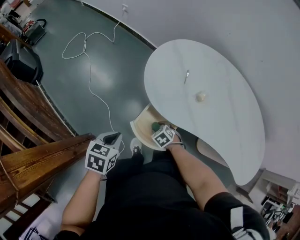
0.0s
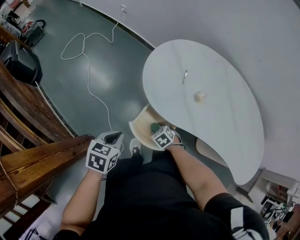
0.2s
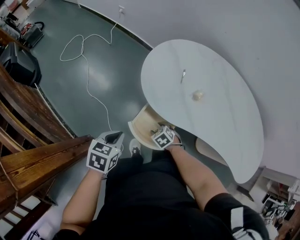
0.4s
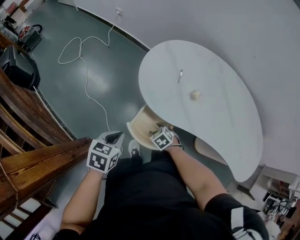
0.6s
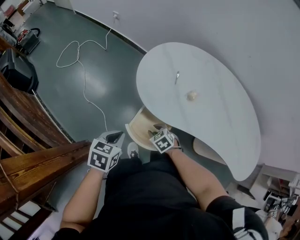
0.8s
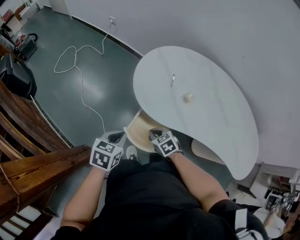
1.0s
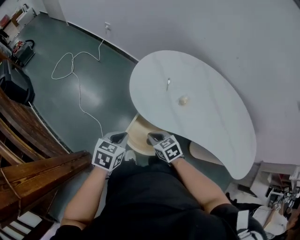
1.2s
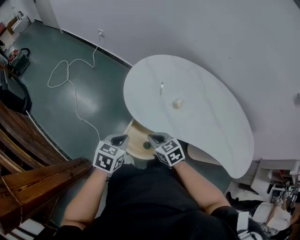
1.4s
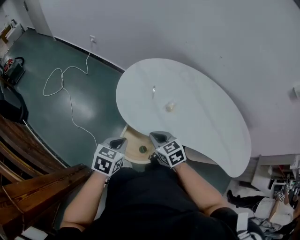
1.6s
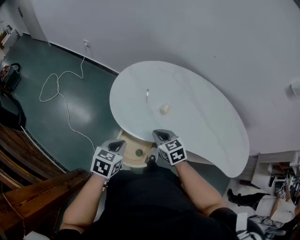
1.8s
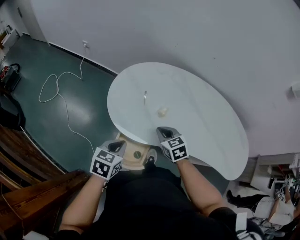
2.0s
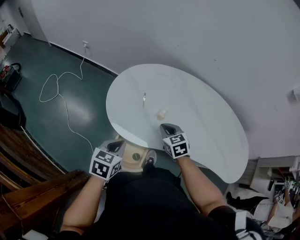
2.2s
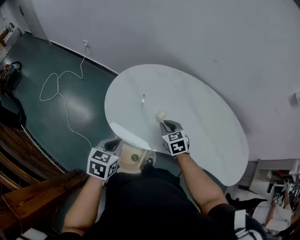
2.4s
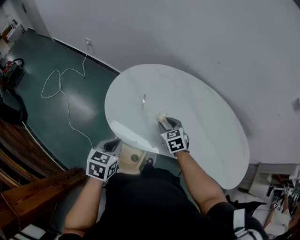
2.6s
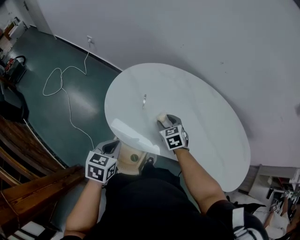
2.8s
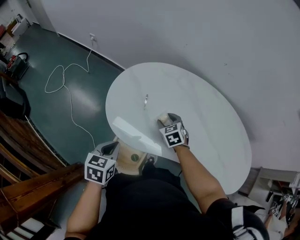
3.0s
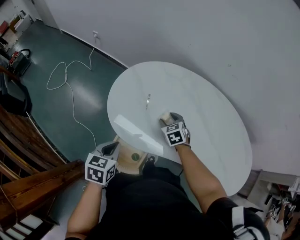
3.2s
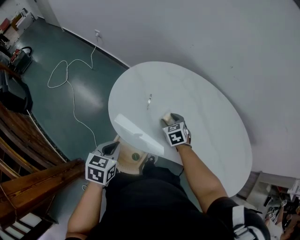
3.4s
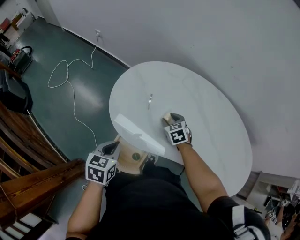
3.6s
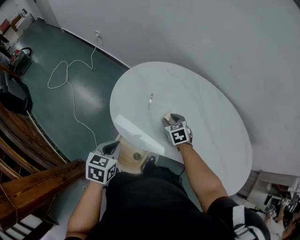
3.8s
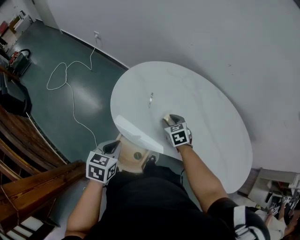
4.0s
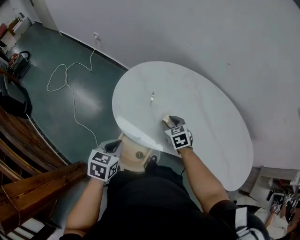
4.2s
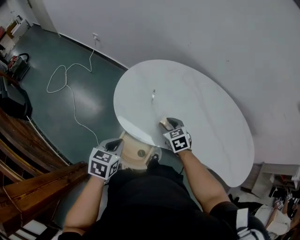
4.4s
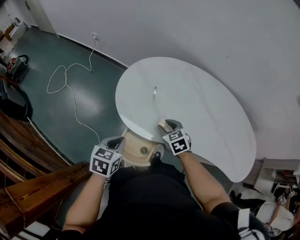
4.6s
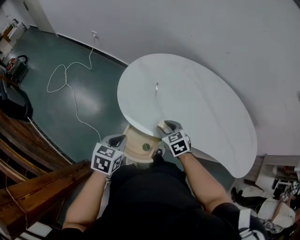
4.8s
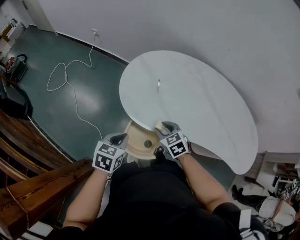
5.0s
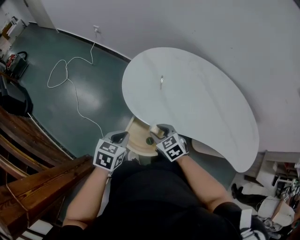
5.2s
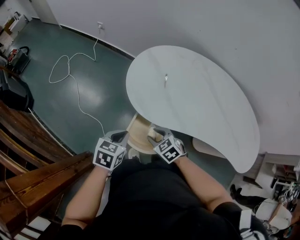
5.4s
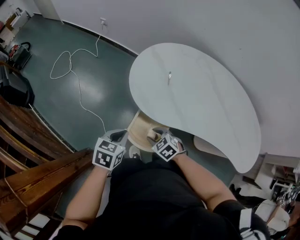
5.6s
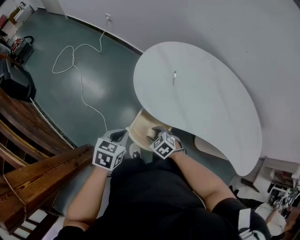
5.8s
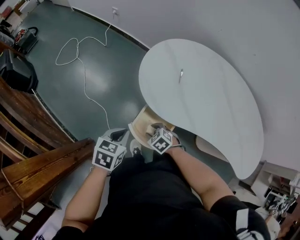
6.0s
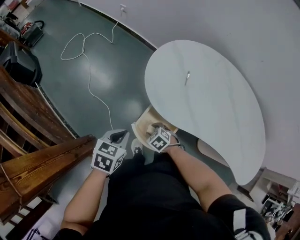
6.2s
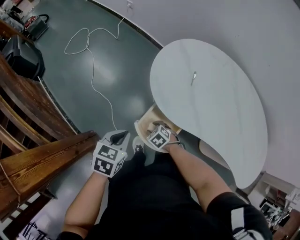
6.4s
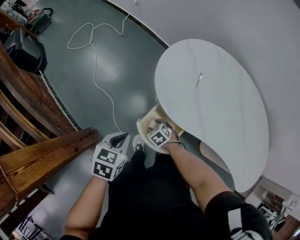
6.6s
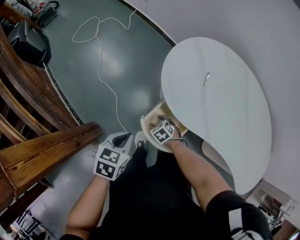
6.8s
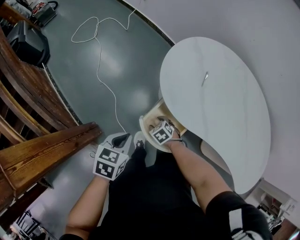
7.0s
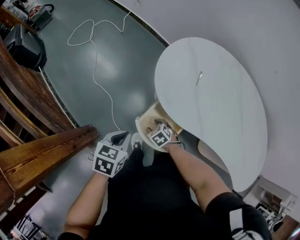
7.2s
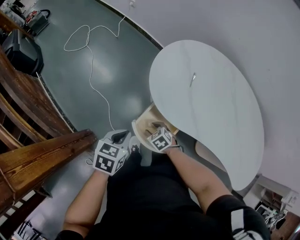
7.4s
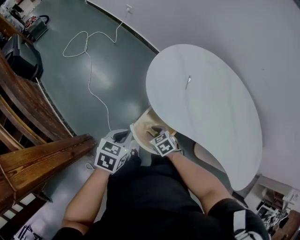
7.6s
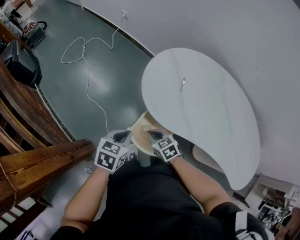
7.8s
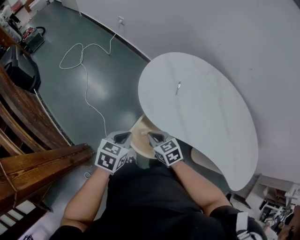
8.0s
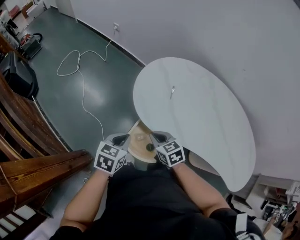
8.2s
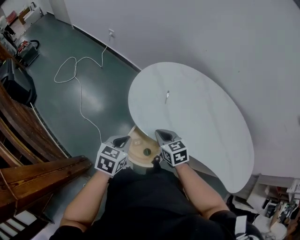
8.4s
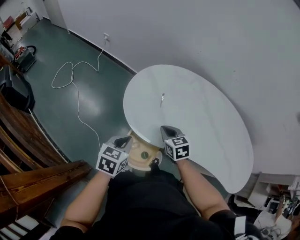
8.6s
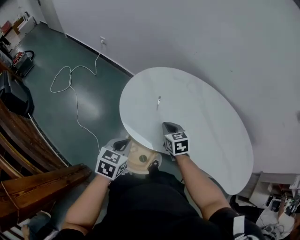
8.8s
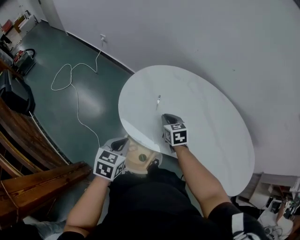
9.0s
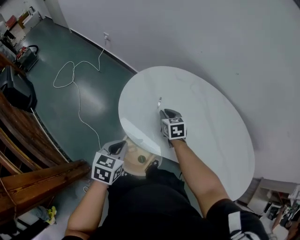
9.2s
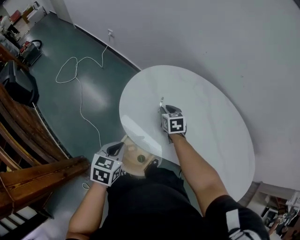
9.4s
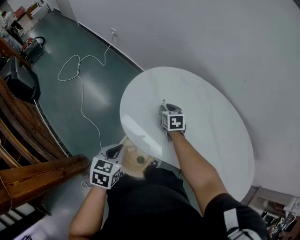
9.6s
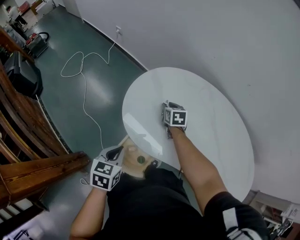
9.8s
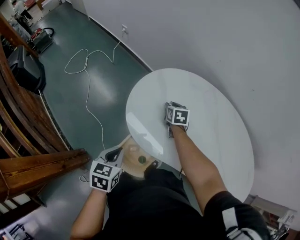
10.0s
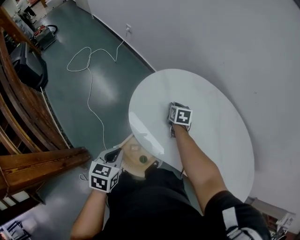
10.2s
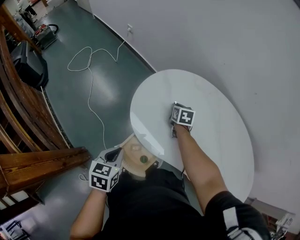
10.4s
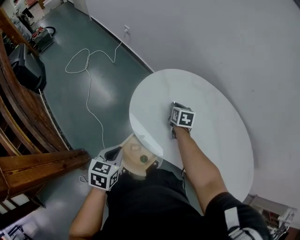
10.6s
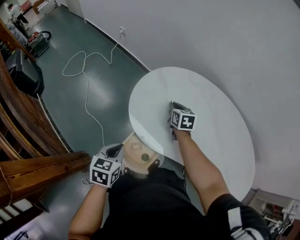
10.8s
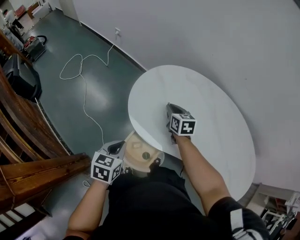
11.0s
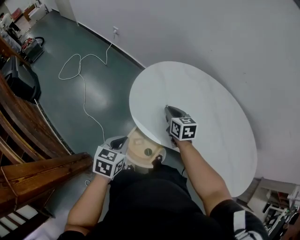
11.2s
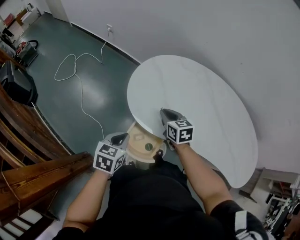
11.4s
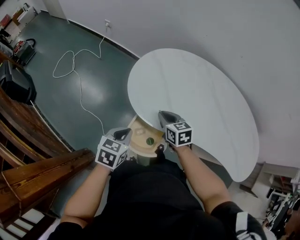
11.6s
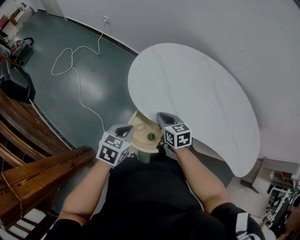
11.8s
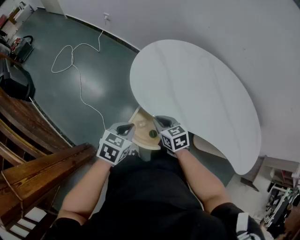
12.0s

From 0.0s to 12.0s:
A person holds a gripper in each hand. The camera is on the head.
From 0.0s to 1.6s: The left gripper travels to the right by approximately 10 cm; the right gripper is displaced upward by about 20 cm, rotates roughly 30 degrees, and closes its fingers.
From 1.6s to 3.0s: The left gripper shifts roughly 5 cm forward. The right gripper is displaced forward and to the right by some 20 cm, and opens its fingers.
From 3.0s to 4.4s: The right gripper moves backward, about 5 cm.
From 4.4s to 6.0s: The right gripper goes some 25 cm to the left, backward and downward, and turns by roughly 30 degrees, while the left gripper shifts about 10 cm to the left and backward.
From 6.0s to 7.6s: The right gripper travels downward and back again, about 10 cm each way.
From 7.6s to 9.0s: The left gripper is displaced to the right, forward and upward by some 15 cm; the right gripper shifts about 30 cm forward, to the right and upward, changes its angle by some 30 degrees, and closes up.
From 9.0s to 10.4s: The right gripper travels forward and downward by some 15 cm. The left gripper changes place by roughly 5 cm.
From 10.4s to 12.0s: The right gripper moves backward, approximately 30 cm; the left gripper turns by roughly 30 degrees.

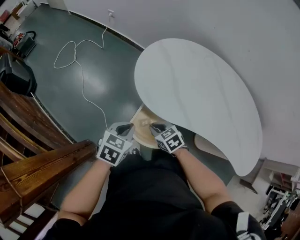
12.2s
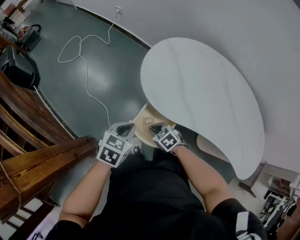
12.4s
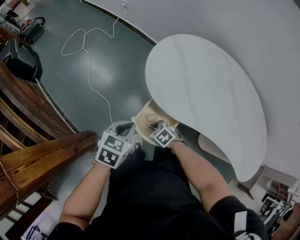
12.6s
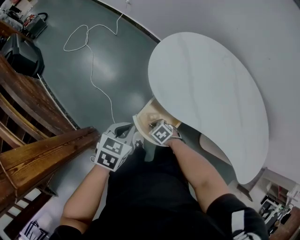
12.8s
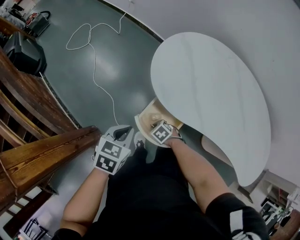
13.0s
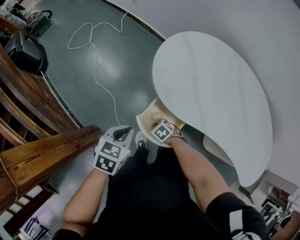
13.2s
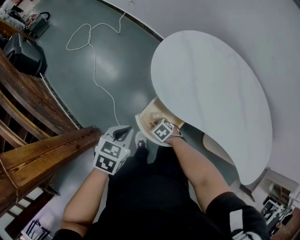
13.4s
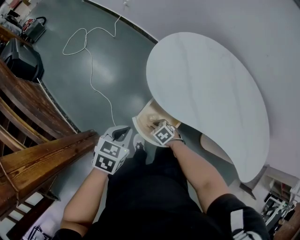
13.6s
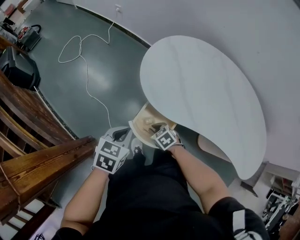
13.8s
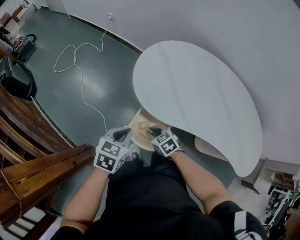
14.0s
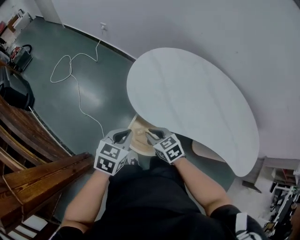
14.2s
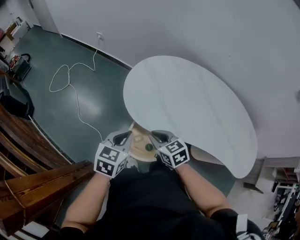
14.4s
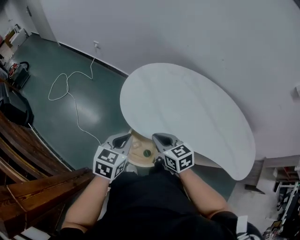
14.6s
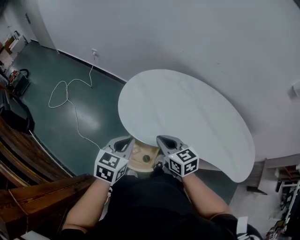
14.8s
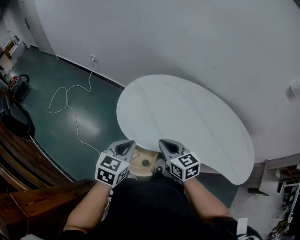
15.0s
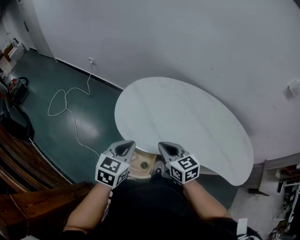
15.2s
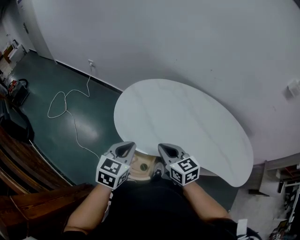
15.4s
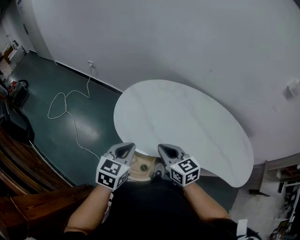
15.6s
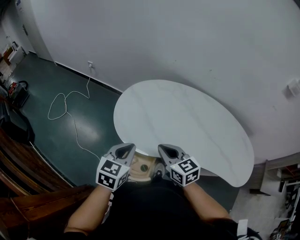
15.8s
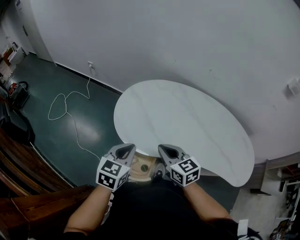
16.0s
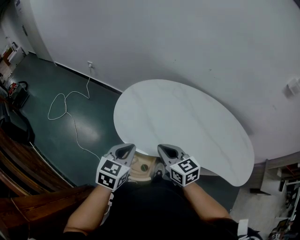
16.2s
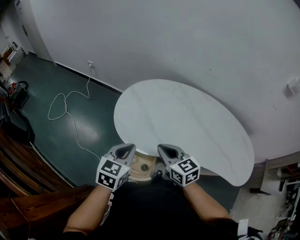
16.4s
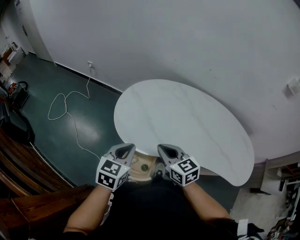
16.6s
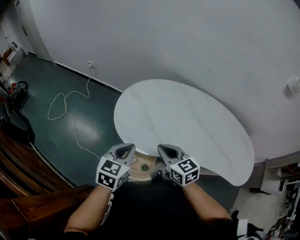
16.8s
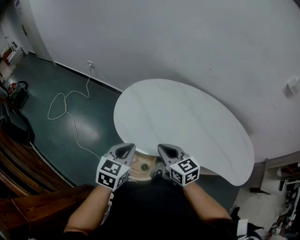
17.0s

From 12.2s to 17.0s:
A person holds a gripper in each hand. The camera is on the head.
From 12.2s to 13.8s: The right gripper shifts approximately 10 cm downward.
From 13.8s to 15.4s: The left gripper goes about 20 cm upward, to the right and forward, and turns by approximately 20 degrees. The right gripper heads upward and to the right, covering some 35 cm, and angles its fingers upward, by approximately 30 degrees.
From 15.4s to 17.0s: Both grippers stay put.

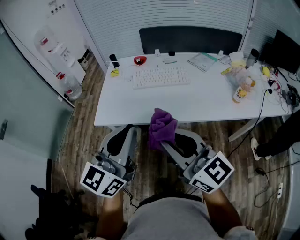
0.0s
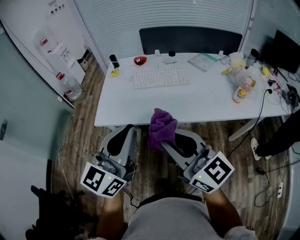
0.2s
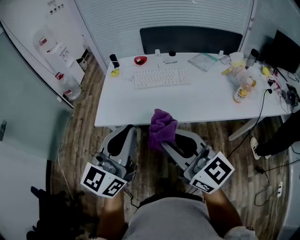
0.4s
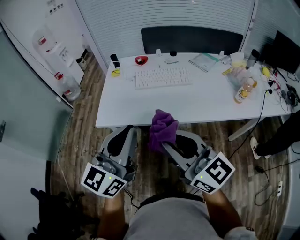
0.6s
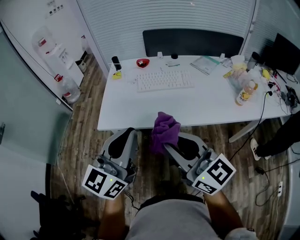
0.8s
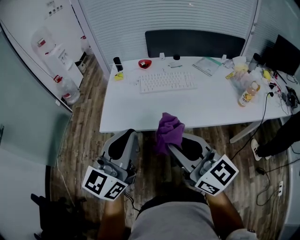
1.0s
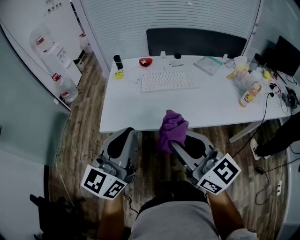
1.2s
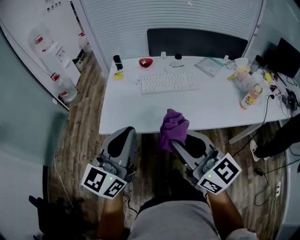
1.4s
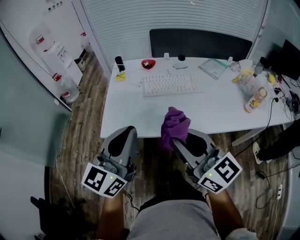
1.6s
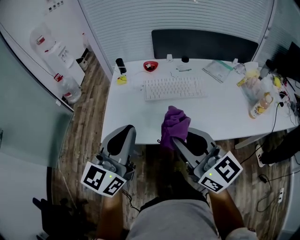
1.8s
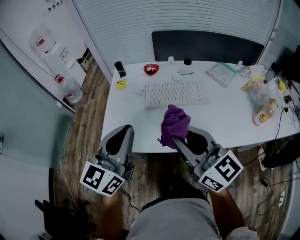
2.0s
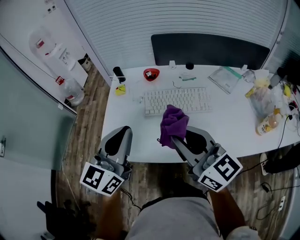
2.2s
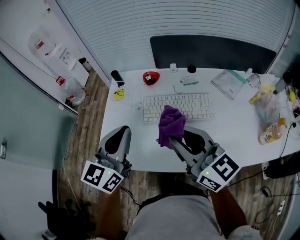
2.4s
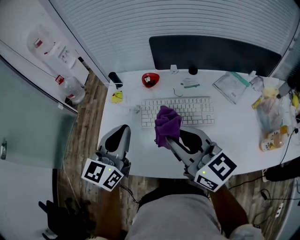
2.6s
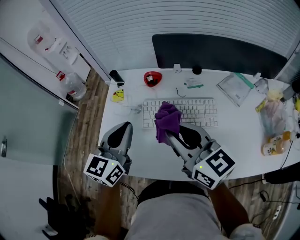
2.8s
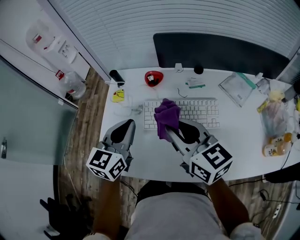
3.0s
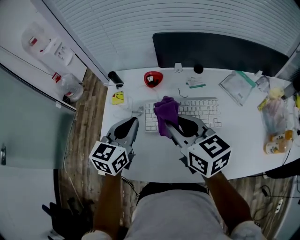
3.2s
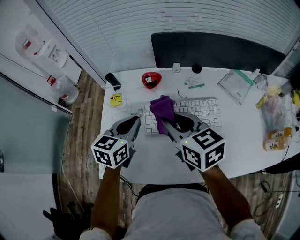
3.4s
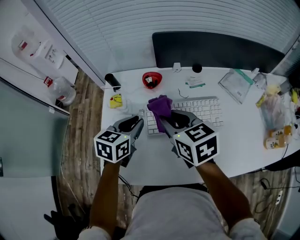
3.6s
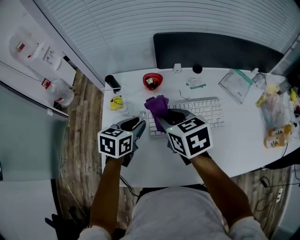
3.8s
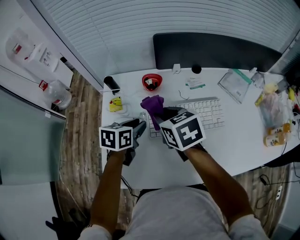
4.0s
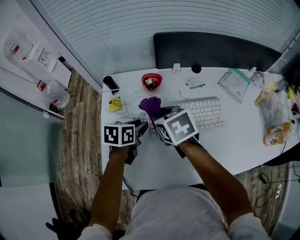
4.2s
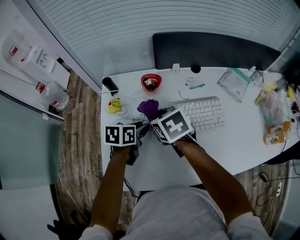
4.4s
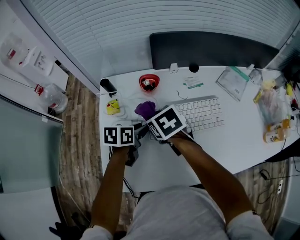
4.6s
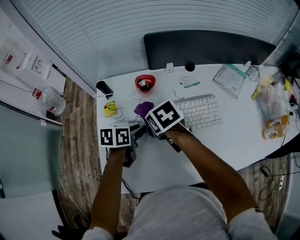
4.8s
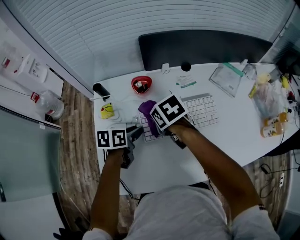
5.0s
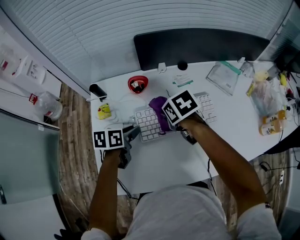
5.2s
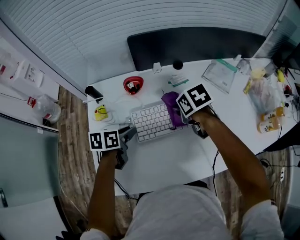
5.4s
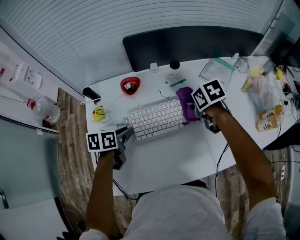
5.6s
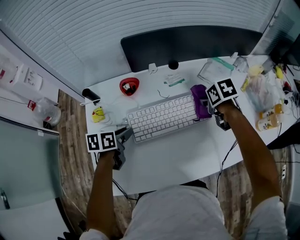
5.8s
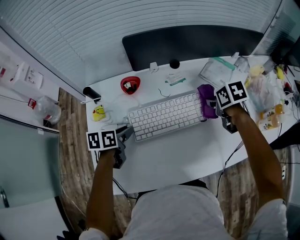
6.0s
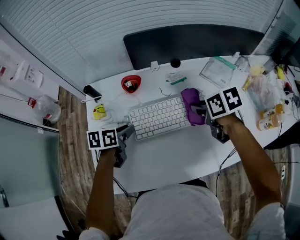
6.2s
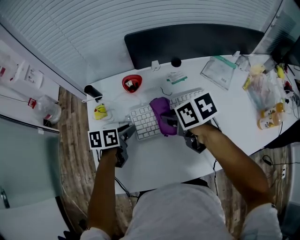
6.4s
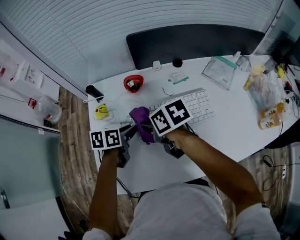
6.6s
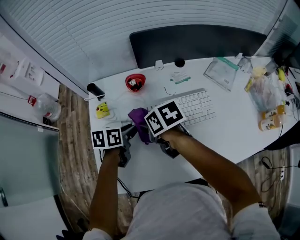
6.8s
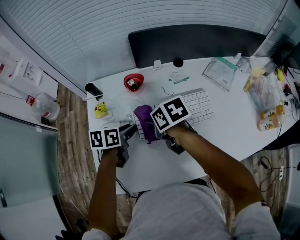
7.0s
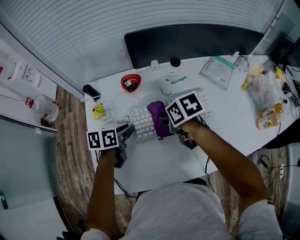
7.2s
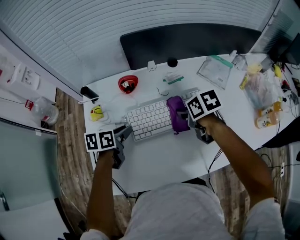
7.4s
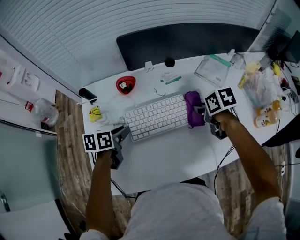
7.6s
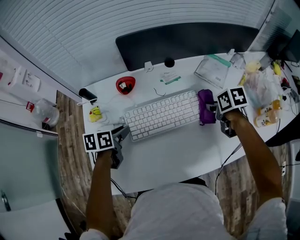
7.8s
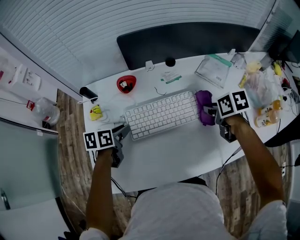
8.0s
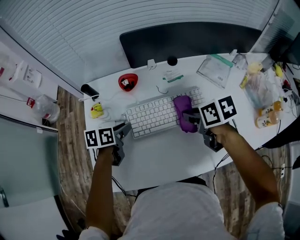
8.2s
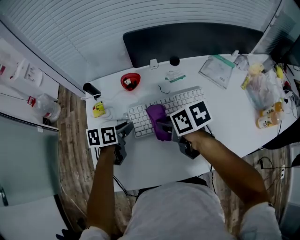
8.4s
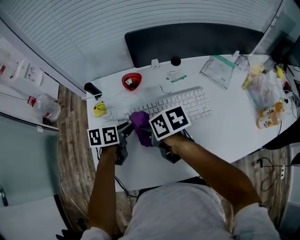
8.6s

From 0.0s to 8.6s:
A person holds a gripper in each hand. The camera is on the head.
From 0.0s to 1.4s: The left gripper goes approximately 10 cm to the left and forward. Meanwhile the right gripper heads forward and to the left, covering about 10 cm.
From 1.4s to 2.8s: Both grippers move forward, approximately 30 cm. The left gripper rotates roughly 20 degrees.
From 2.8s to 4.4s: The right gripper goes about 25 cm downward, forward and to the left, and angles its fingers downward, by roughly 50 degrees. The left gripper goes approximately 20 cm downward and forward, angles its fingers downward, by some 30 degrees, and opens its fingers.
From 4.4s to 5.8s: The right gripper moves to the right, roughly 30 cm, and changes its angle by about 30 degrees.
From 5.8s to 7.2s: The right gripper is displaced to the left by approximately 20 cm.
From 7.2s to 8.6s: The right gripper moves about 25 cm to the right and comes back.
